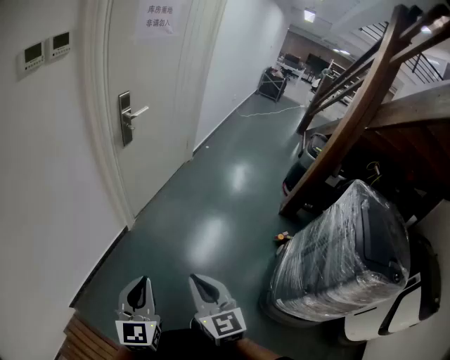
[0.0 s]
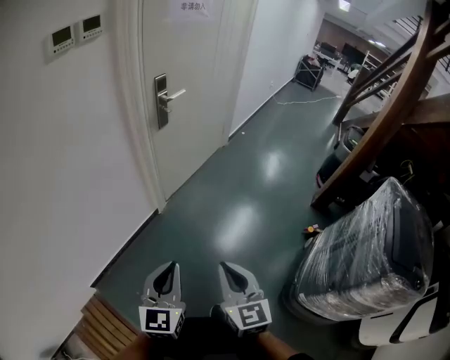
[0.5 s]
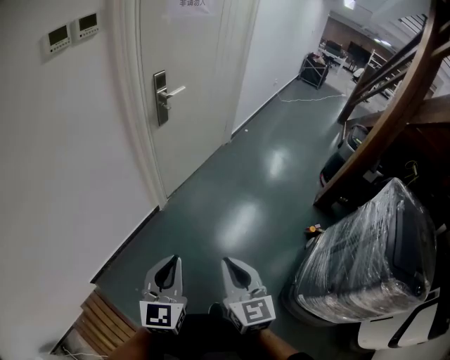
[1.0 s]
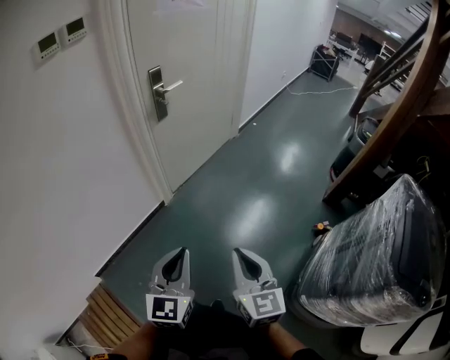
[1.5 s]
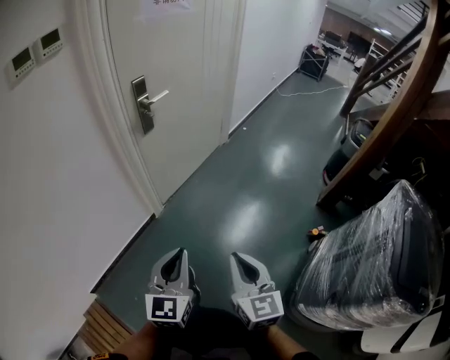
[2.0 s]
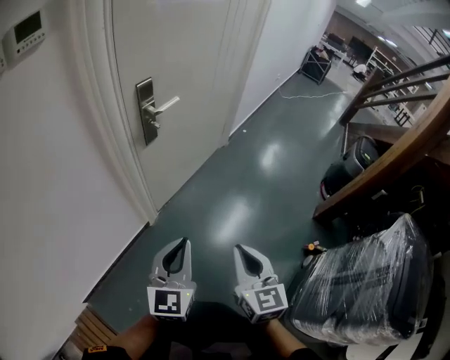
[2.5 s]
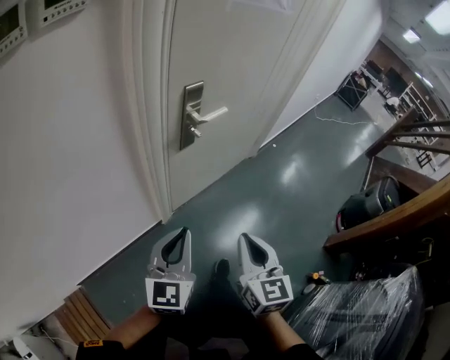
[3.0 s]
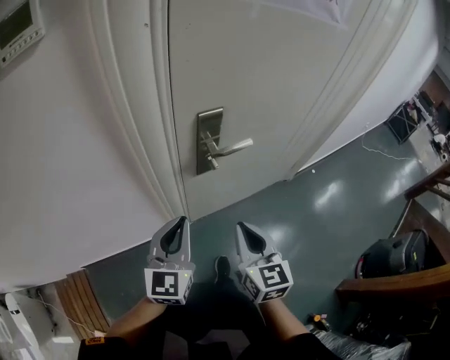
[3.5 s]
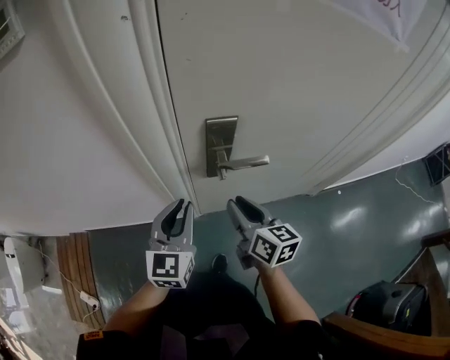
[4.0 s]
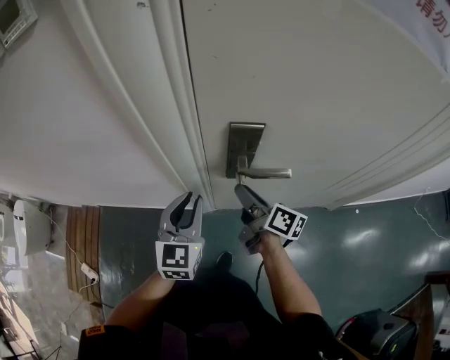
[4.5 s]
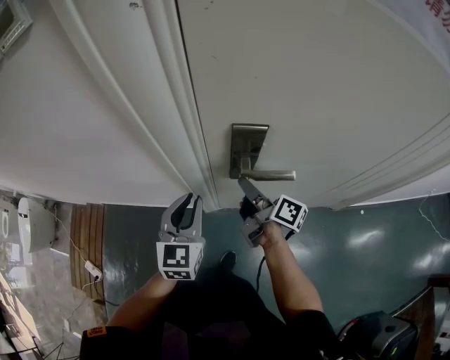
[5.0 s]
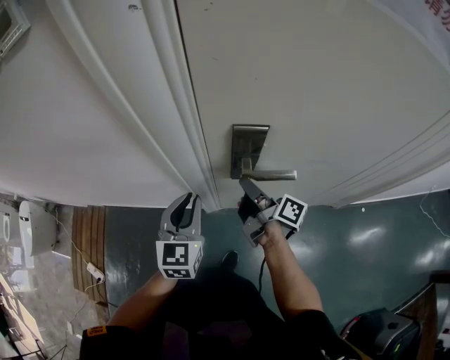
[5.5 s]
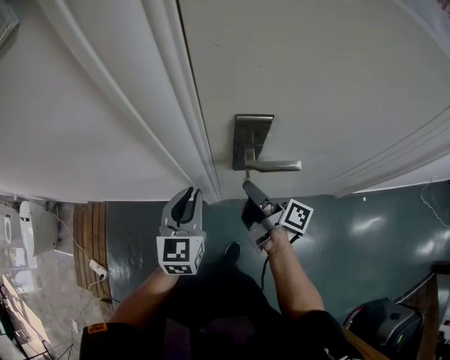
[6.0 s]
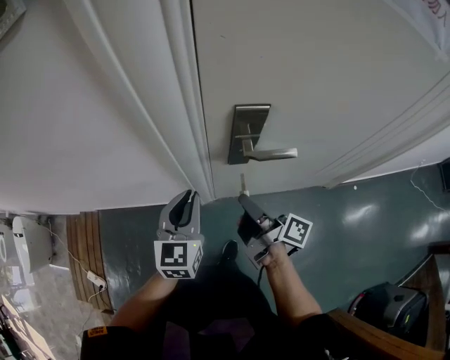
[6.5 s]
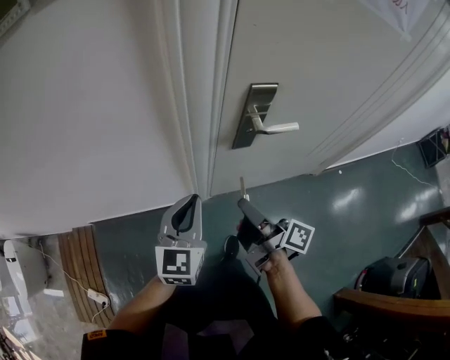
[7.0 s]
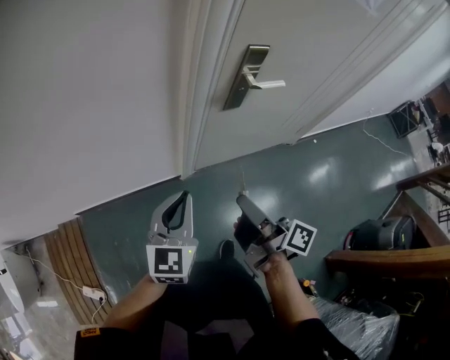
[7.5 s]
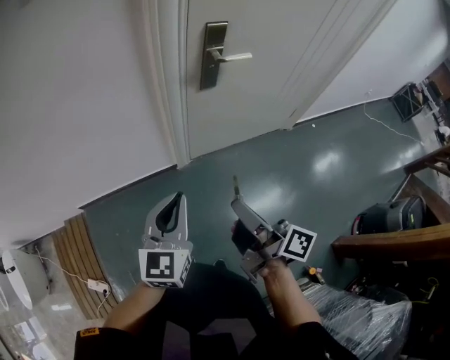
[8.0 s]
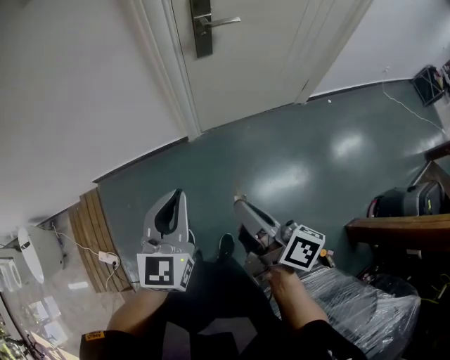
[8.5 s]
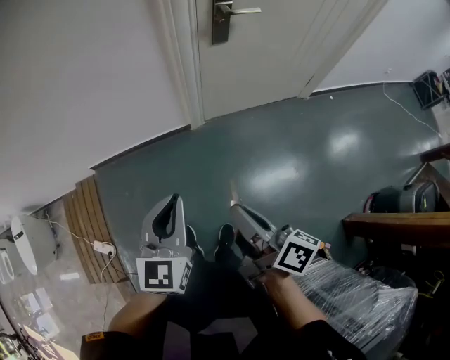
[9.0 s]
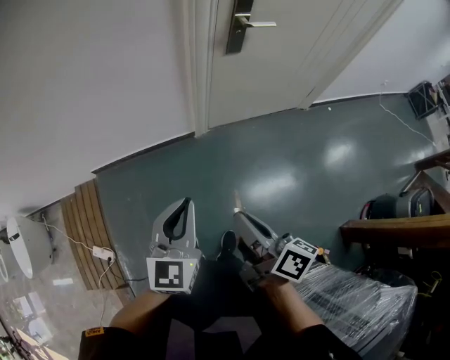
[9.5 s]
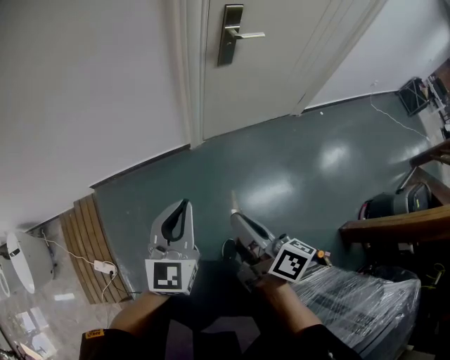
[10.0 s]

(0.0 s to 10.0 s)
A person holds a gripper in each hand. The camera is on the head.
0.0 s - 2.0 s: The left gripper is displaced forward and to the right by roughly 20 cm. Meanwhile the right gripper shifts about 15 cm to the right and forward.
2.0 s - 4.0 s: The pair of grippers is taken some 60 cm. The right gripper swivels some 60 degrees, and opens up. Meanwhile the left gripper rotates about 40 degrees.
4.0 s - 6.0 s: The right gripper heads forward and downward, covering approximately 10 cm, and rolls clockwise, seen from behind, by roughly 50 degrees; the left gripper changes place by about 5 cm.
6.0 s - 8.0 s: The two grippers go about 35 cm backward. The left gripper rotates roughly 20 degrees. Meanwhile the right gripper swivels about 20 degrees.
8.0 s - 10.0 s: The grippers both shift backward and to the left by approximately 15 cm.

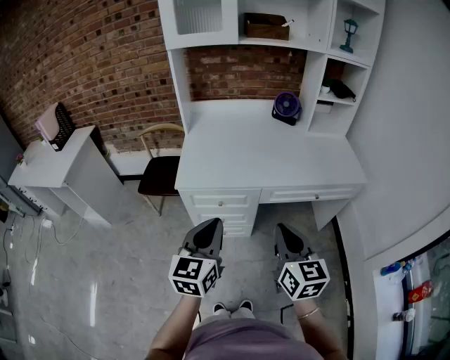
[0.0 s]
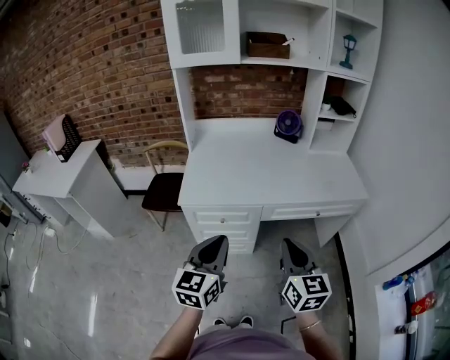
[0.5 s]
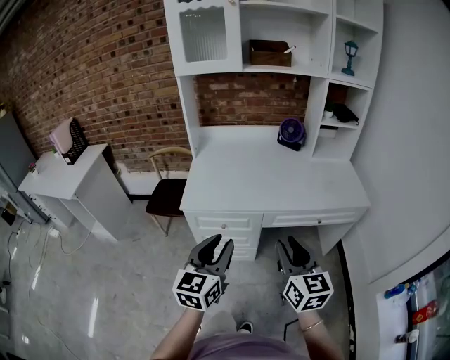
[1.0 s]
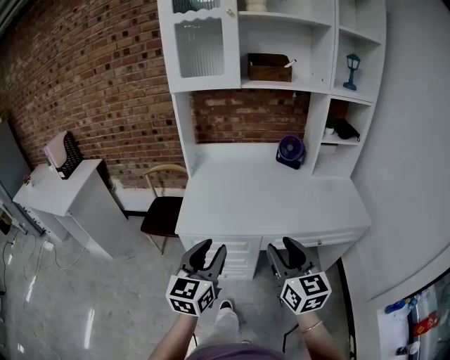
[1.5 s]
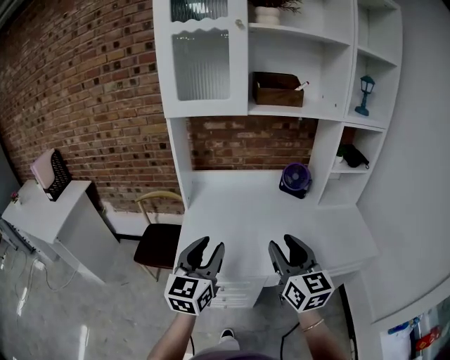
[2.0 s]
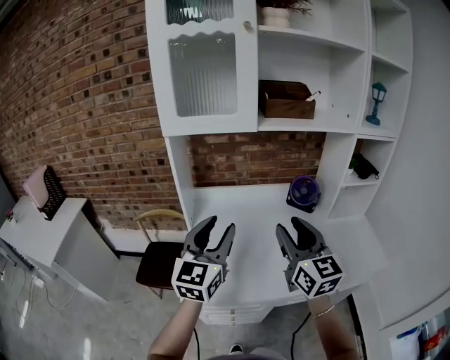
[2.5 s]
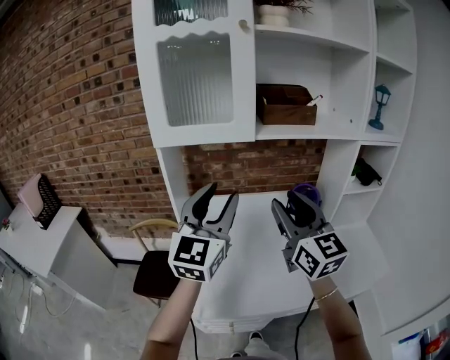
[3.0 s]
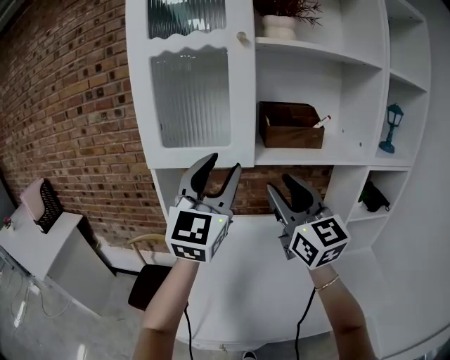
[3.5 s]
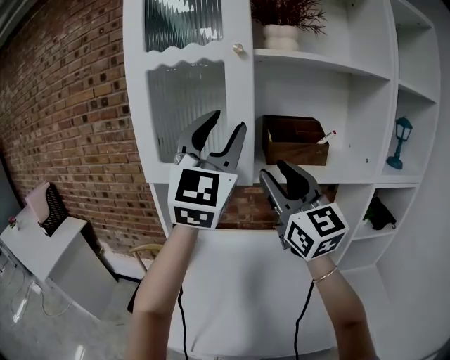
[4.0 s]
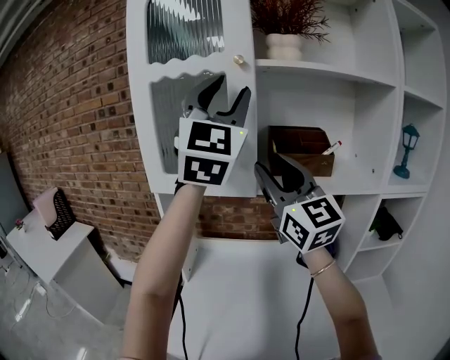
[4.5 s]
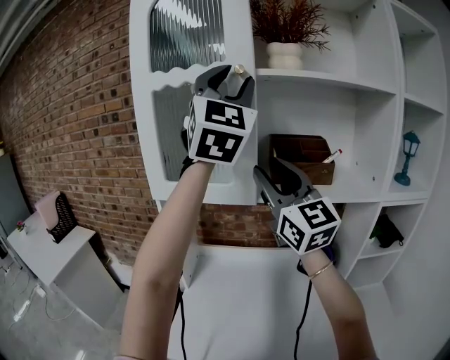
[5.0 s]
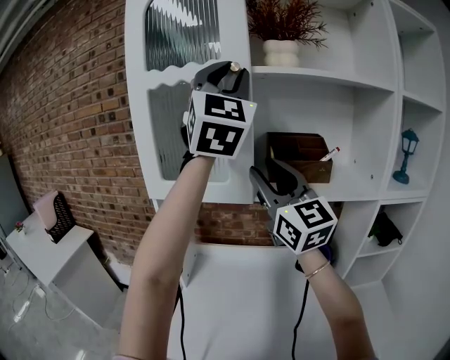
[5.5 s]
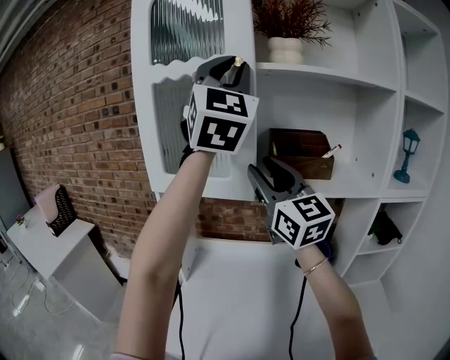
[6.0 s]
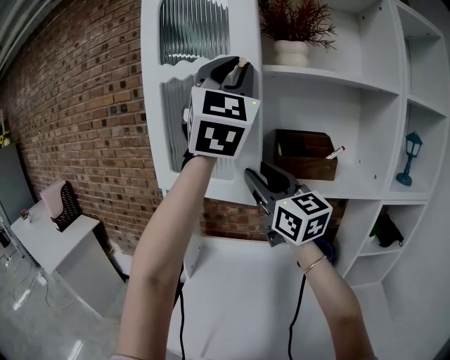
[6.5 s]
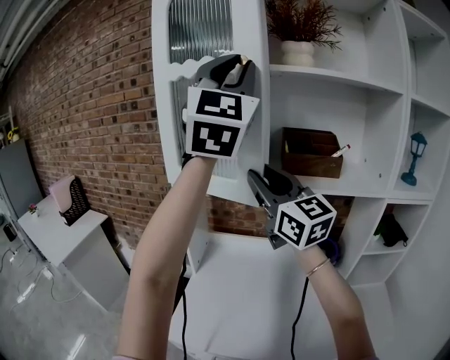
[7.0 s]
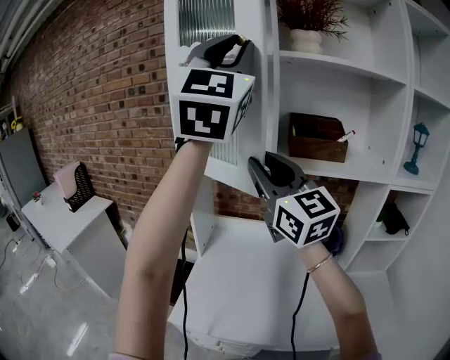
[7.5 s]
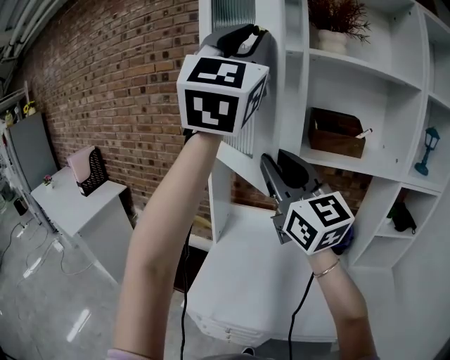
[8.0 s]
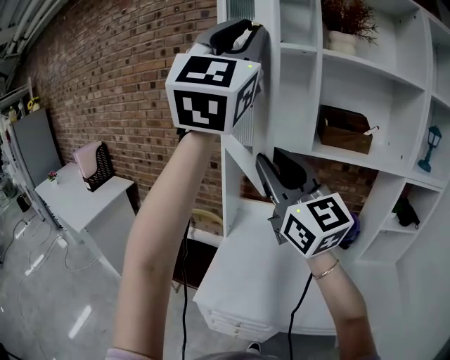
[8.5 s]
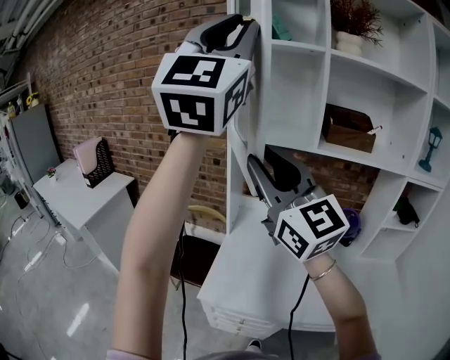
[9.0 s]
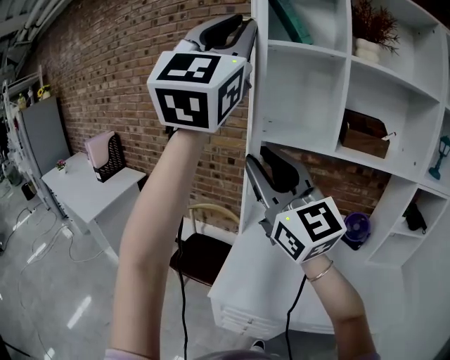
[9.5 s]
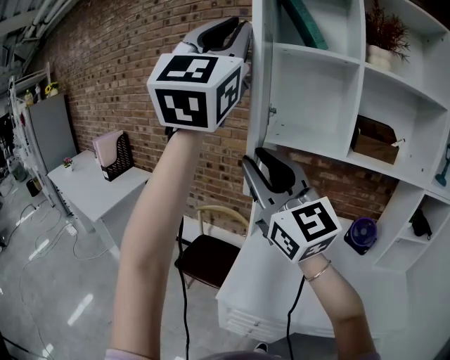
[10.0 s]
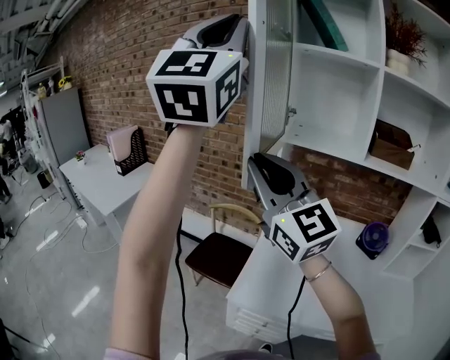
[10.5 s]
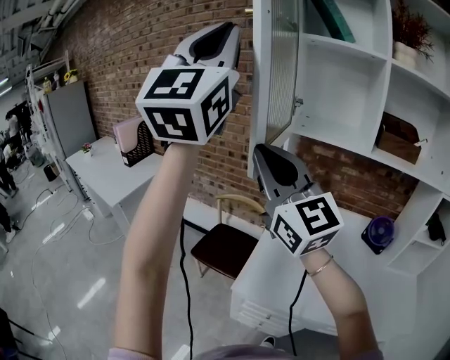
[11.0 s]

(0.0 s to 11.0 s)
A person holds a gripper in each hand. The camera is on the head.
0.0 s - 2.0 s: The two grippers go some 25 cm forward. The right gripper opens up, while the left gripper opens up.
2.0 s - 3.5 s: Both grippers travel together forward and upward, approximately 35 cm. The right gripper rotates about 20 degrees. Meanwhile the left gripper changes its angle by roughly 30 degrees.
3.5 s - 5.5 s: The right gripper heads upward and forward, covering some 10 cm; the left gripper moves upward, about 25 cm, and turns by roughly 30 degrees.
5.5 s - 7.5 s: The left gripper shifts approximately 15 cm backward and to the left. Meanwhile the right gripper goes roughly 10 cm to the left and backward.
7.5 s - 9.0 s: Both grippers travel together to the left and backward, roughly 15 cm.
9.0 s - 11.0 s: The grippers both shift to the left by roughly 15 cm. The right gripper closes.

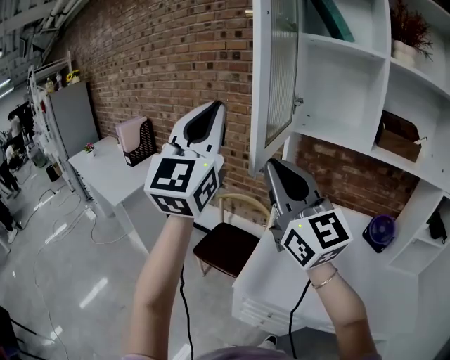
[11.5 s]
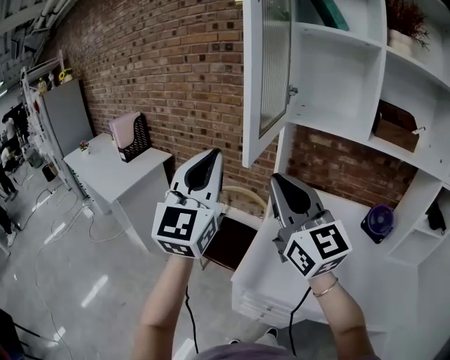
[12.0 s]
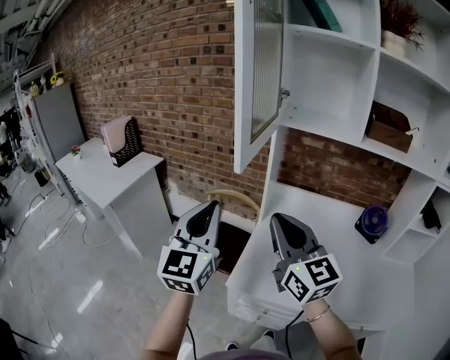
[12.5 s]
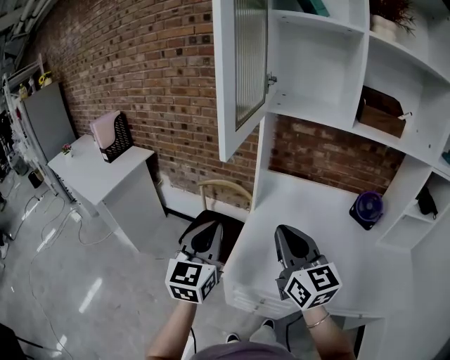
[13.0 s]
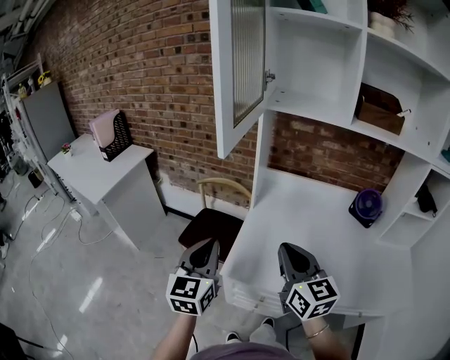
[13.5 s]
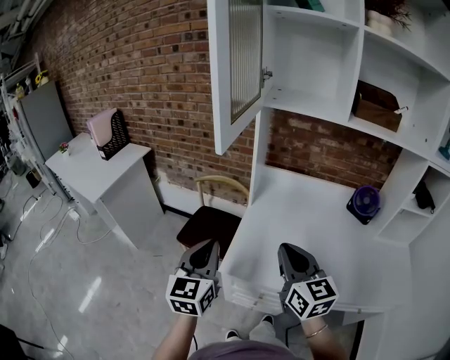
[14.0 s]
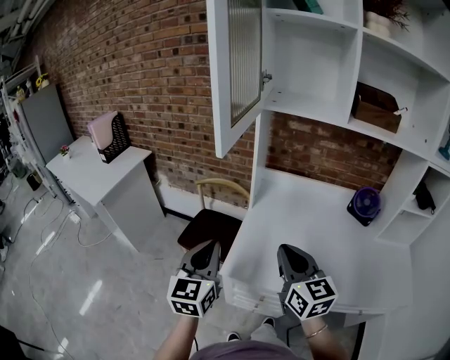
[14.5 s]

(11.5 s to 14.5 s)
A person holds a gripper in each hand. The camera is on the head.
11.5 s - 13.0 s: The right gripper goes some 20 cm downward and to the right, and rotates approximately 30 degrees. The left gripper shifts about 30 cm downward, and tilts its fingers about 30 degrees downward.
13.0 s - 14.5 s: The right gripper goes approximately 5 cm downward; the left gripper shifts by about 5 cm.

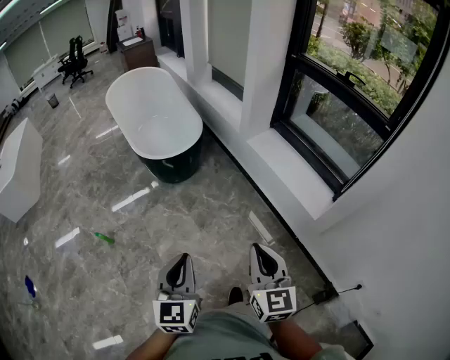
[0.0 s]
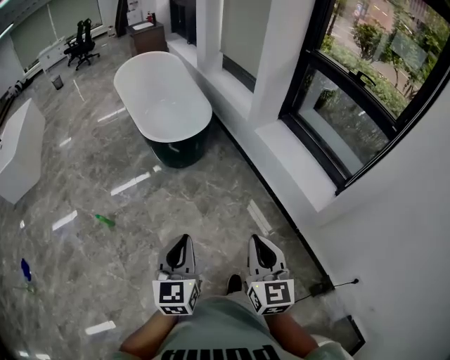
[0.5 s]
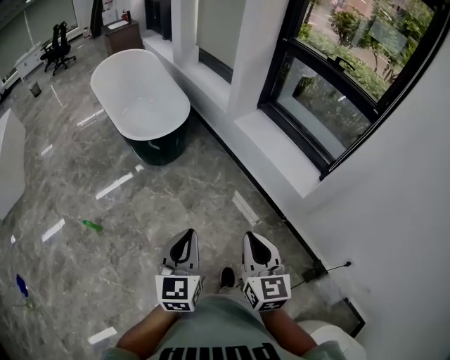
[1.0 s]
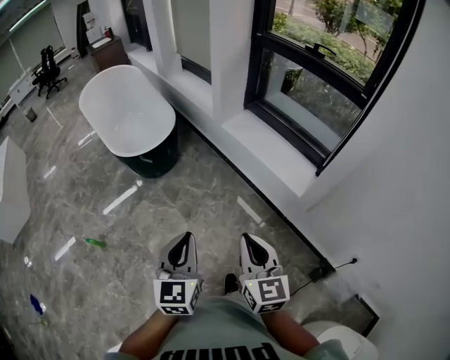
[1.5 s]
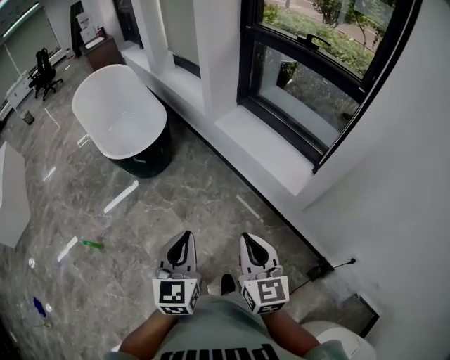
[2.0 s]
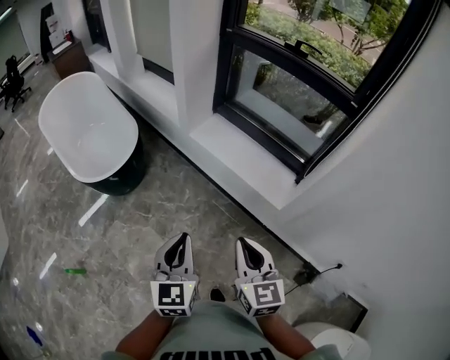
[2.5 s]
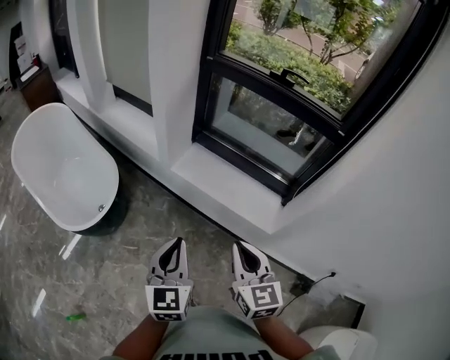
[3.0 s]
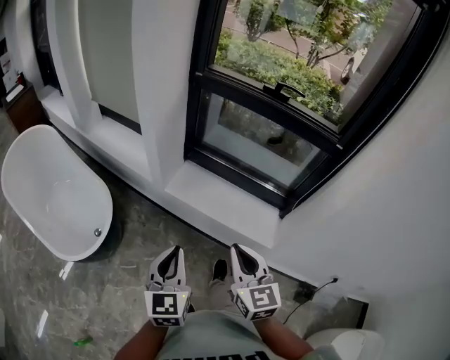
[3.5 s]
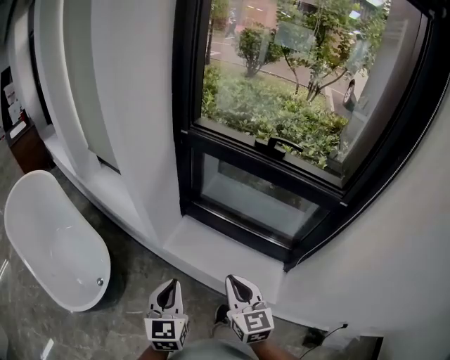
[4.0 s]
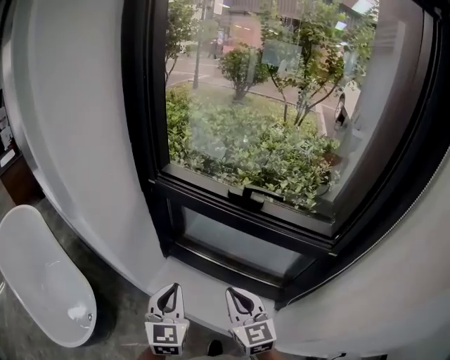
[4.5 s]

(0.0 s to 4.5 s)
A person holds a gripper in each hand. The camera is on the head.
0.0 s - 2.0 s: The right gripper travels to the right by some 10 cm, while the left gripper travels to the right and forward by approximately 15 cm.
2.0 s - 4.5 s: The pair of grippers is taken forward, approximately 70 cm. The left gripper turns by roughly 20 degrees.
